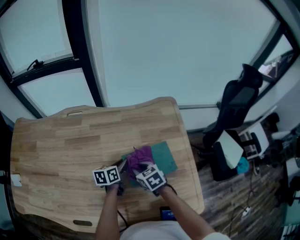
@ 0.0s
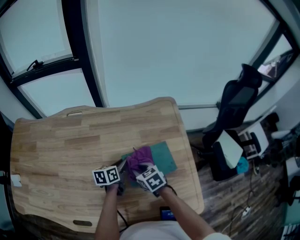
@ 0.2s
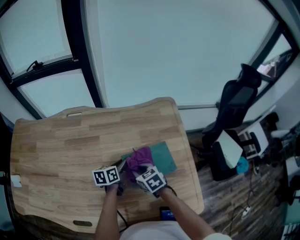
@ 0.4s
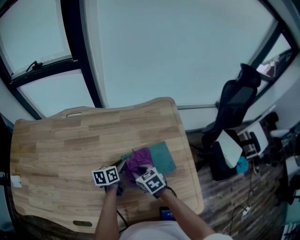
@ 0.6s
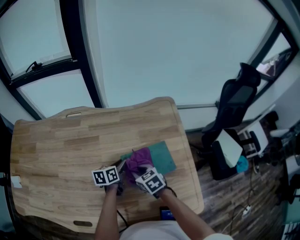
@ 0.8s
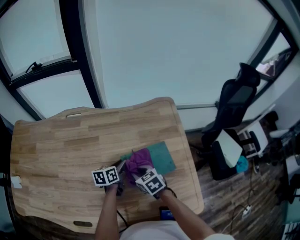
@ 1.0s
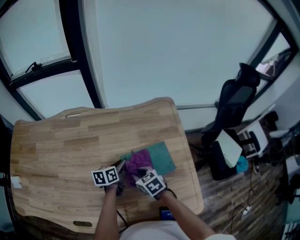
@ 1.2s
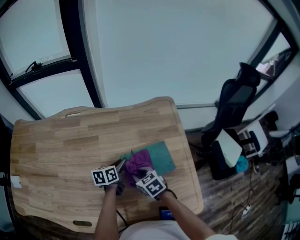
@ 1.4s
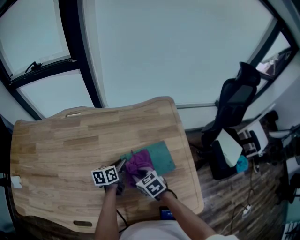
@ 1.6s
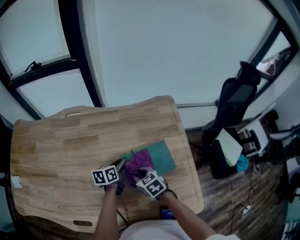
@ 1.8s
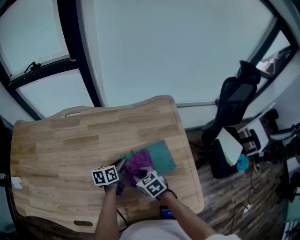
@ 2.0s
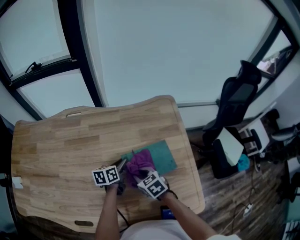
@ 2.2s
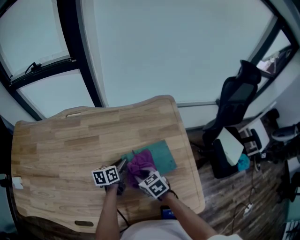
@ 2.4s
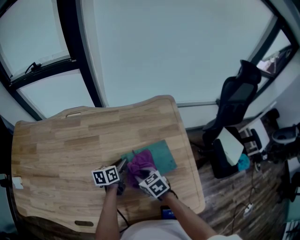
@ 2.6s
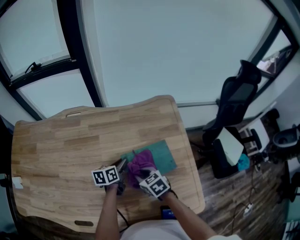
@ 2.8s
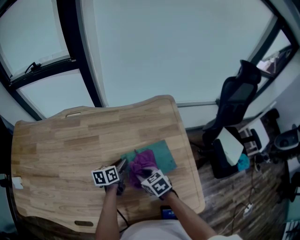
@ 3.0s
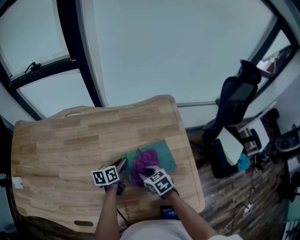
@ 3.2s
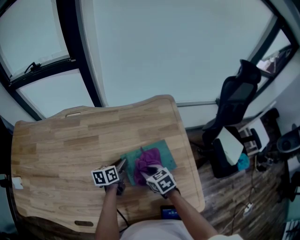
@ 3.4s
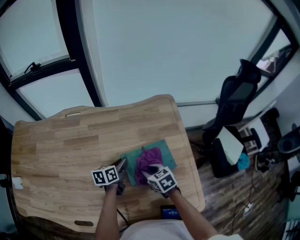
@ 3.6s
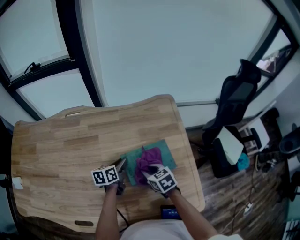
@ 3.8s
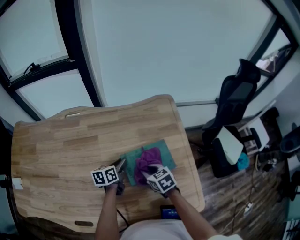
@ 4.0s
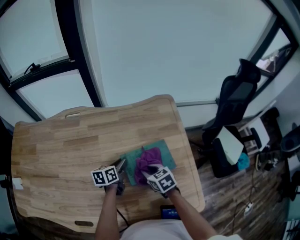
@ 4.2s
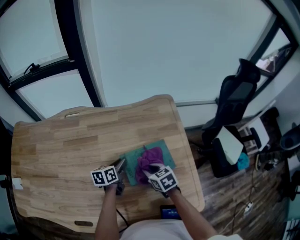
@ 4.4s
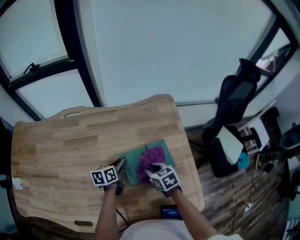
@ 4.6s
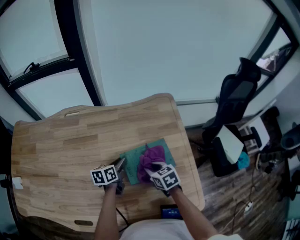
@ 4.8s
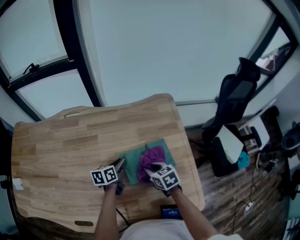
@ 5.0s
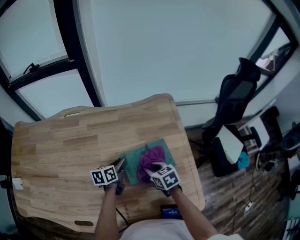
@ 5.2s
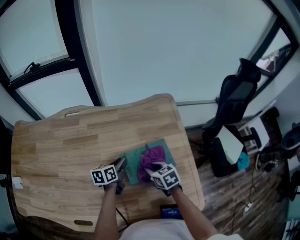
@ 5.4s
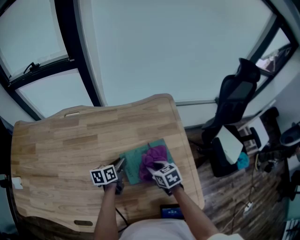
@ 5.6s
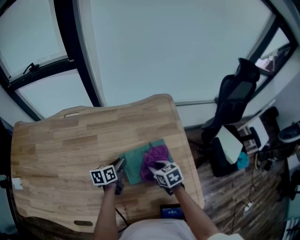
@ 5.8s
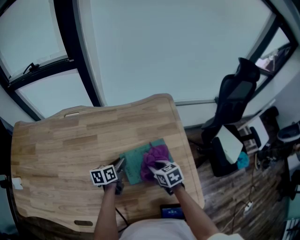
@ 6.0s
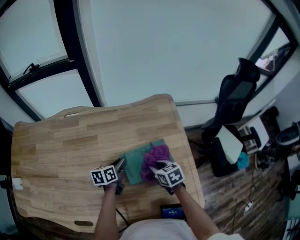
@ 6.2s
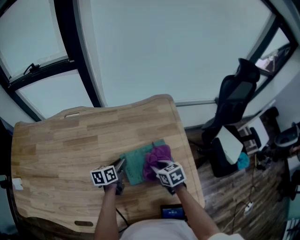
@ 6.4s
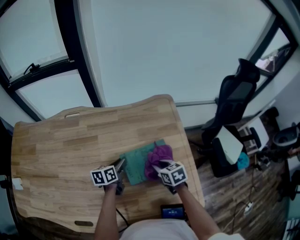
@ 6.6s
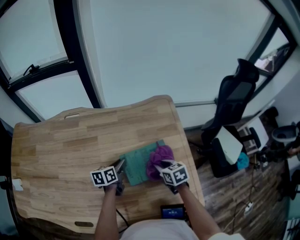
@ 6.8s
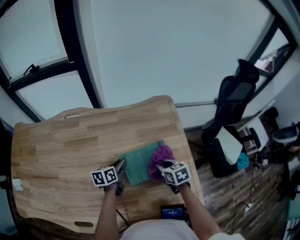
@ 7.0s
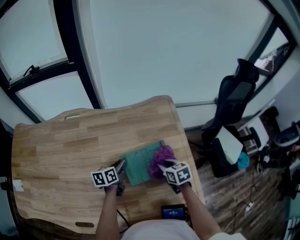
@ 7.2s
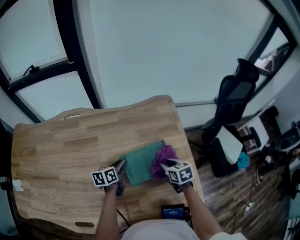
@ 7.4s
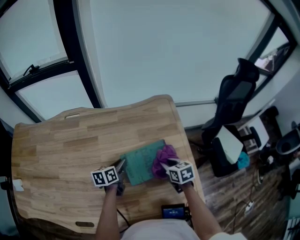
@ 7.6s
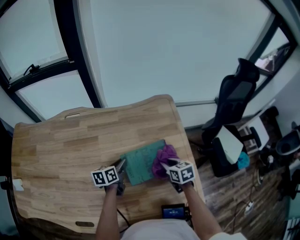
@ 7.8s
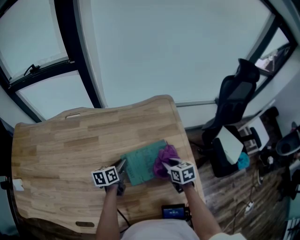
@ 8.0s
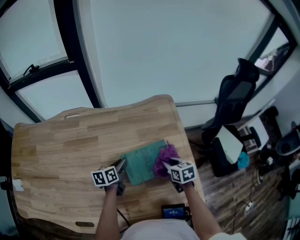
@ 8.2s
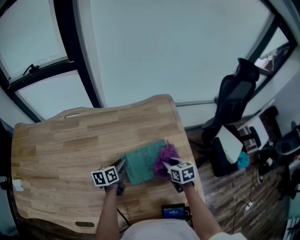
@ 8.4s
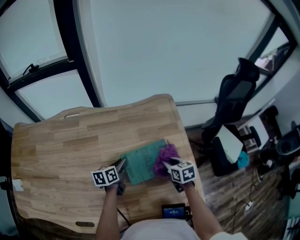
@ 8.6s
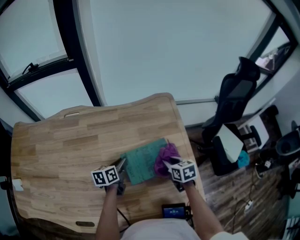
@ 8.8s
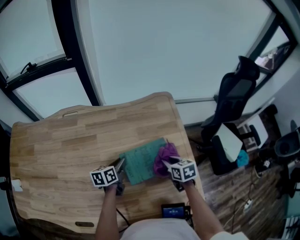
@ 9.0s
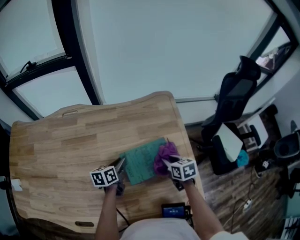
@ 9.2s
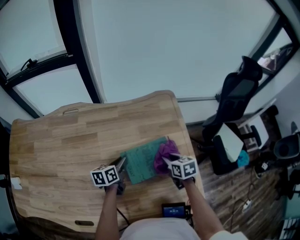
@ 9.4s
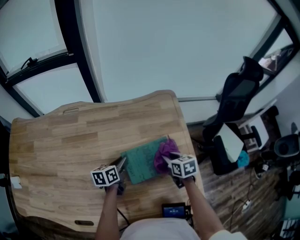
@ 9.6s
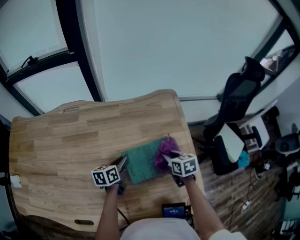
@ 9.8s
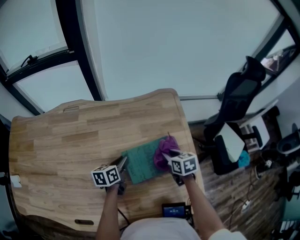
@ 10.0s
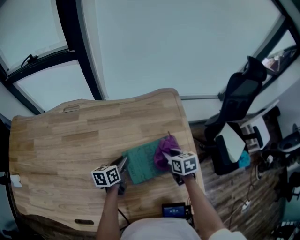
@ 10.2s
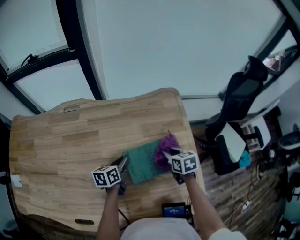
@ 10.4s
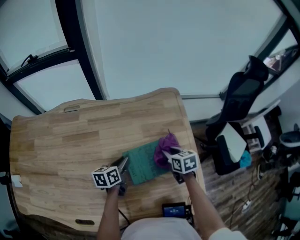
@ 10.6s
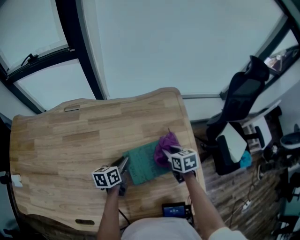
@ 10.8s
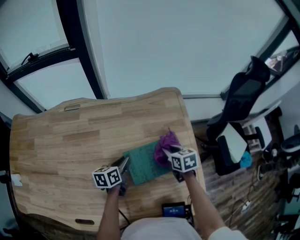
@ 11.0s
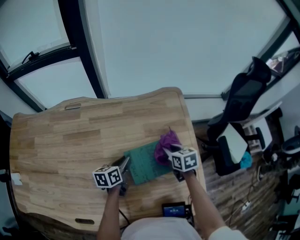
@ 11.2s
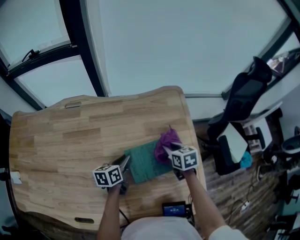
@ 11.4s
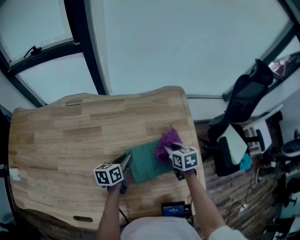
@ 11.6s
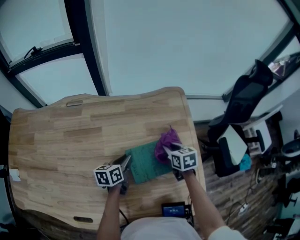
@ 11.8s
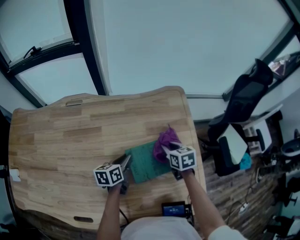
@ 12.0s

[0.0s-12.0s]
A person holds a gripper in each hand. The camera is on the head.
0.0s to 4.4s: The grippers stay close to where they were, moving slightly.
4.4s to 6.0s: The grippers stay close to where they were, moving slightly.
6.0s to 7.6s: The right gripper travels to the right by roughly 5 cm.
7.6s to 9.0s: Both grippers stay put.
9.0s to 10.4s: The grippers stay close to where they were, moving slightly.
10.4s to 12.0s: The grippers stay close to where they were, moving slightly.

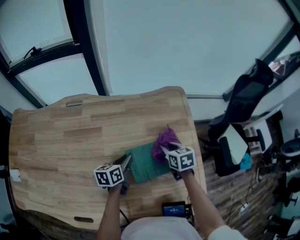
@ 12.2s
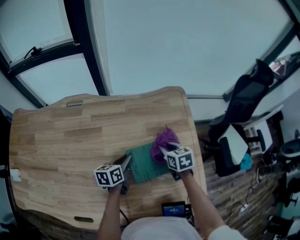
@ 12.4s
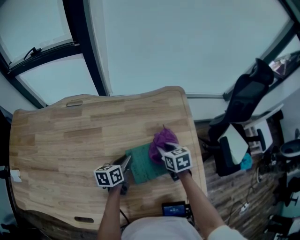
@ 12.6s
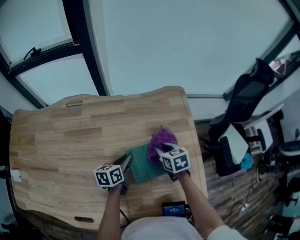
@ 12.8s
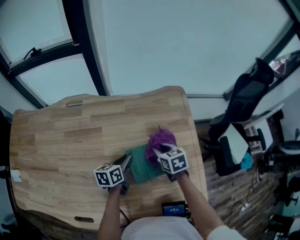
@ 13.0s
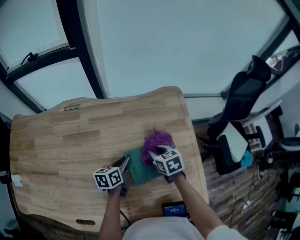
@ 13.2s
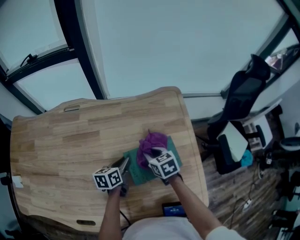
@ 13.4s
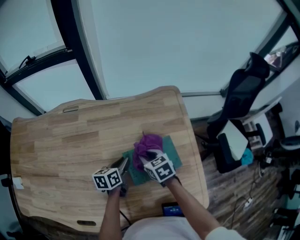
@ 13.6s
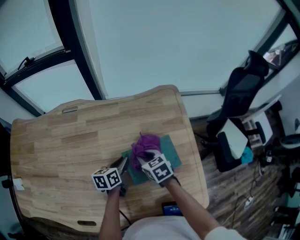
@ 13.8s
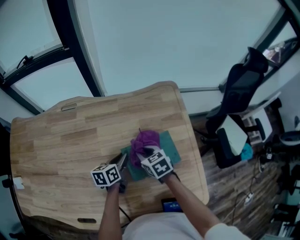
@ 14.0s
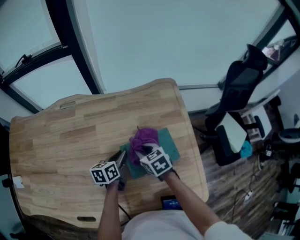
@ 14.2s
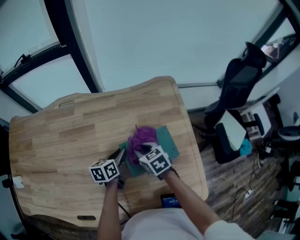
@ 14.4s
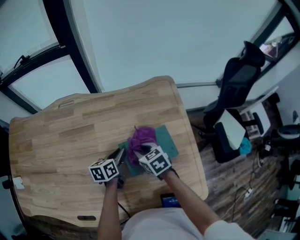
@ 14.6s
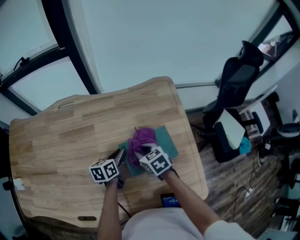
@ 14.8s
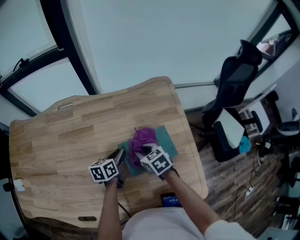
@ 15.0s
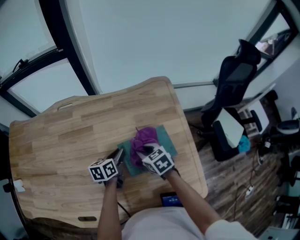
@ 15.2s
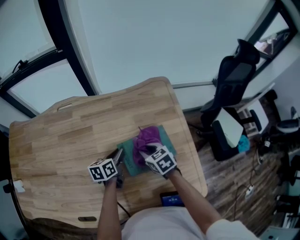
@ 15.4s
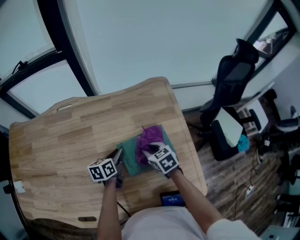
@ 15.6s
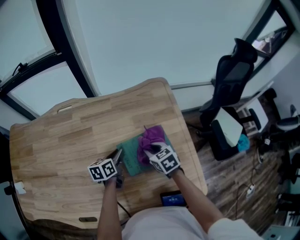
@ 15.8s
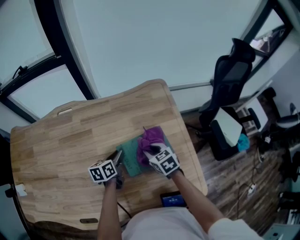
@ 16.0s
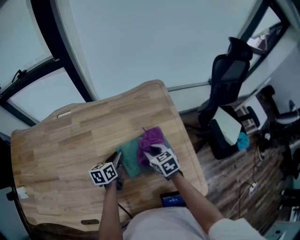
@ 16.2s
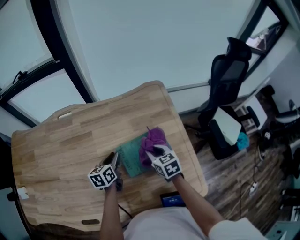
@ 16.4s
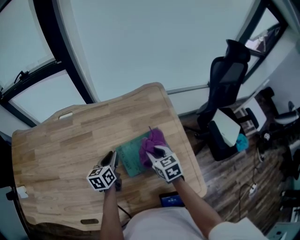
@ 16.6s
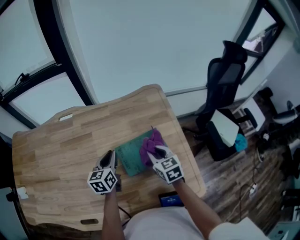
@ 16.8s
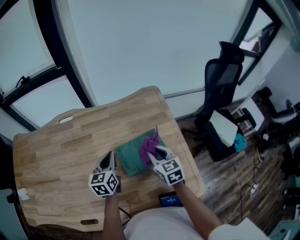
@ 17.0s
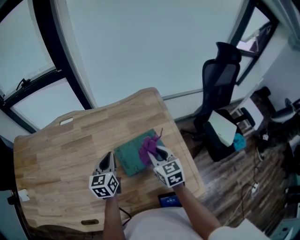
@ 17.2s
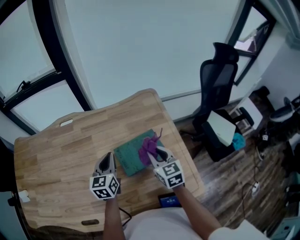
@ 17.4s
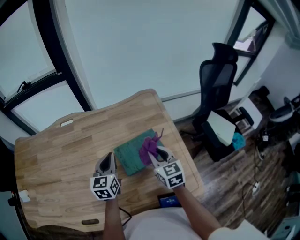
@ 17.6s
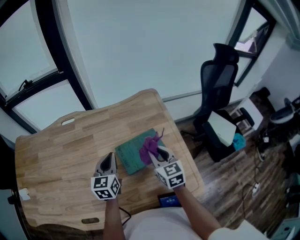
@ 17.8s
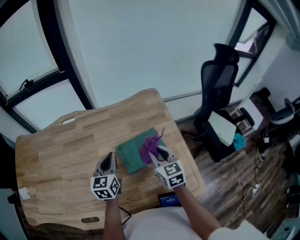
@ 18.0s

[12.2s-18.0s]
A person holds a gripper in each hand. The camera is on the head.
12.2s to 13.6s: The right gripper heads to the left, covering roughly 10 cm.
13.6s to 15.0s: The grippers stay close to where they were, moving slightly.
15.0s to 16.6s: The right gripper travels to the right by some 5 cm. The left gripper moves some 5 cm.
16.6s to 18.0s: Both grippers travel together upward, about 10 cm. The left gripper turns by some 20 degrees.

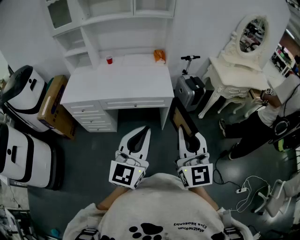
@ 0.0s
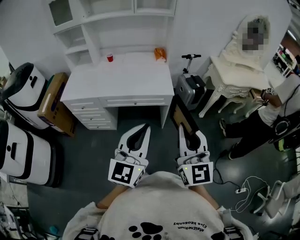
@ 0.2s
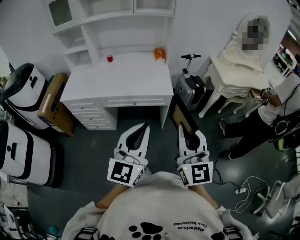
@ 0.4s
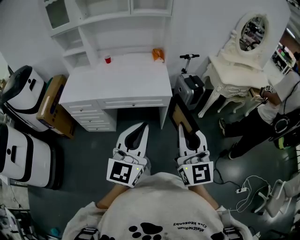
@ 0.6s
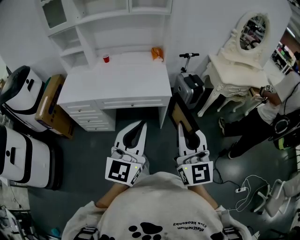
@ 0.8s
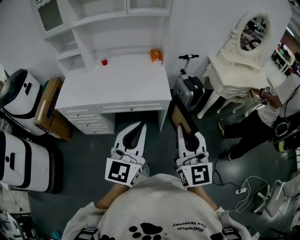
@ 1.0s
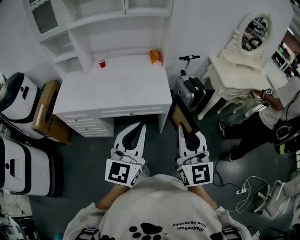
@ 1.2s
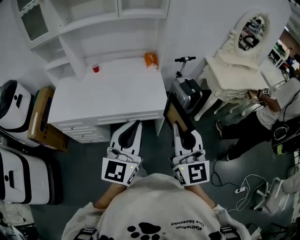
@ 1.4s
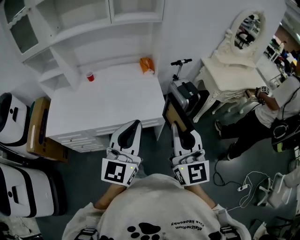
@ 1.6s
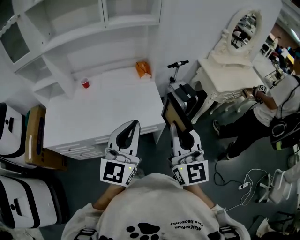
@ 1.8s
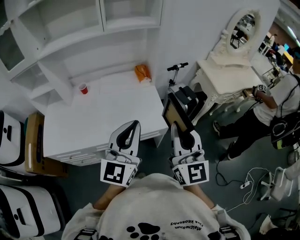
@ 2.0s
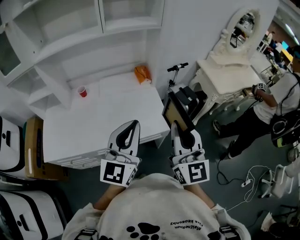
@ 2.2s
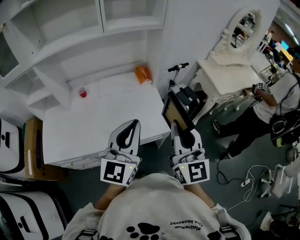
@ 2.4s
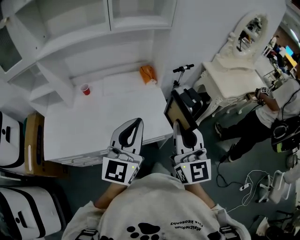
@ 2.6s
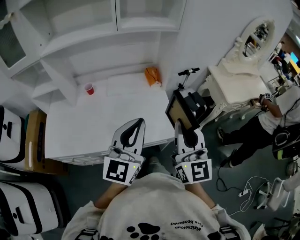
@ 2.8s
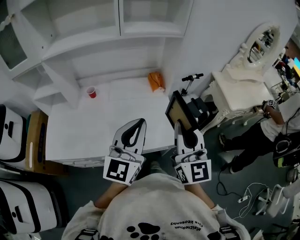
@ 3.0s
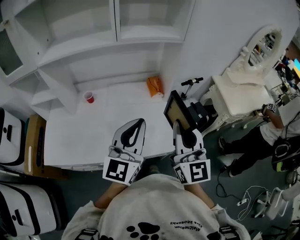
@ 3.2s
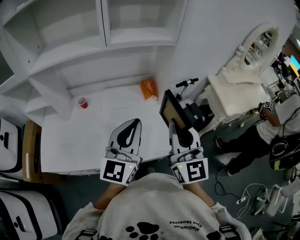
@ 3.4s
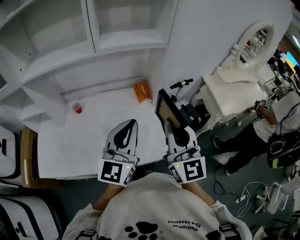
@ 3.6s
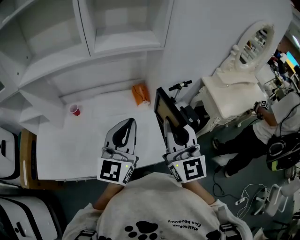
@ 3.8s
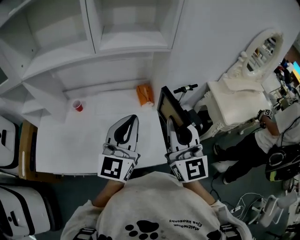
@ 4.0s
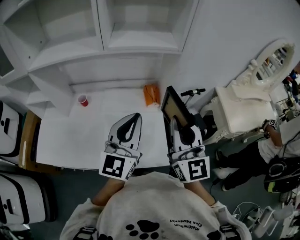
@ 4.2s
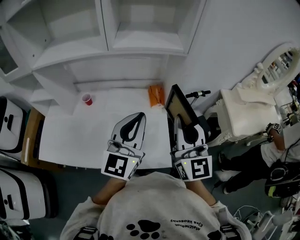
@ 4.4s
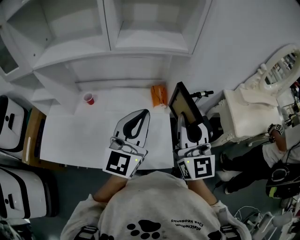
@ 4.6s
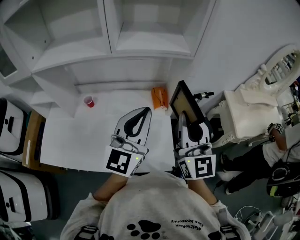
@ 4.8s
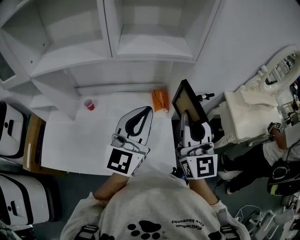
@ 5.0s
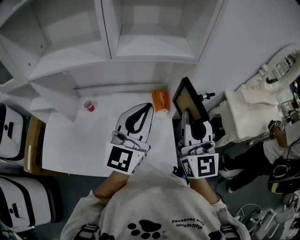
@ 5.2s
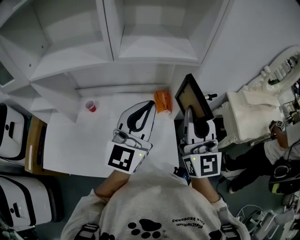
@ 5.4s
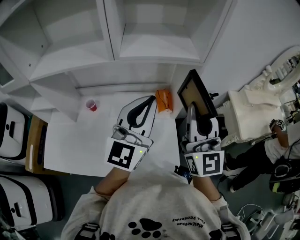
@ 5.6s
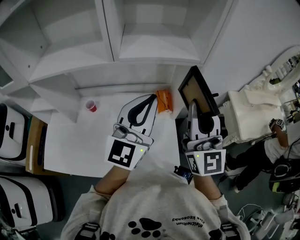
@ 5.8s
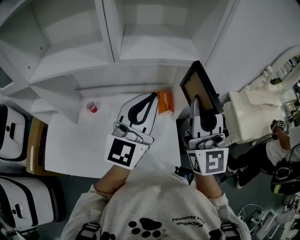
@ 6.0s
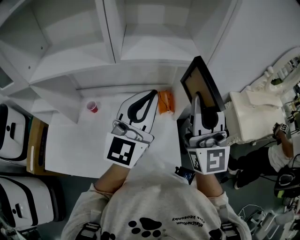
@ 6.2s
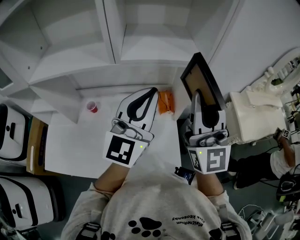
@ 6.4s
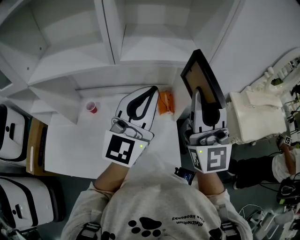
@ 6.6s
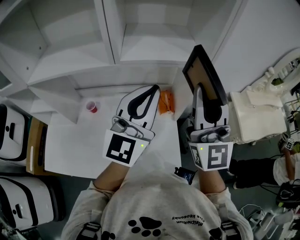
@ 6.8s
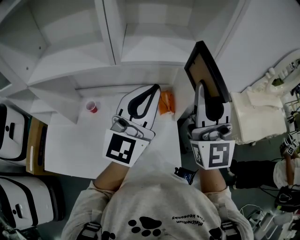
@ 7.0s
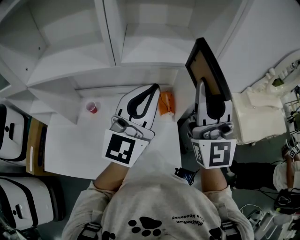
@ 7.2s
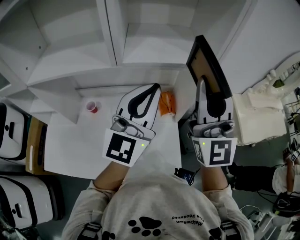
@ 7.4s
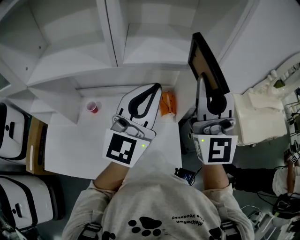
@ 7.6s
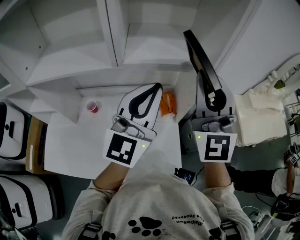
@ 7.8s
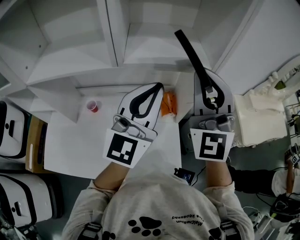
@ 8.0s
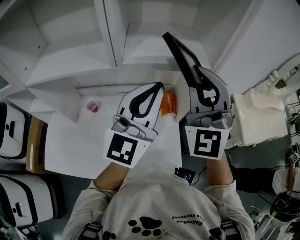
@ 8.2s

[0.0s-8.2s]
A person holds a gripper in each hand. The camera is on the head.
0.0s to 1.6s: The two grippers go about 25 cm forward.
1.6s to 3.2s: The right gripper travels forward and to the left by approximately 25 cm. Meanwhile the left gripper goes about 25 cm forward.
3.2s to 5.0s: The two grippers go about 15 cm forward.
5.0s to 6.6s: The left gripper goes about 10 cm forward and upward; the right gripper is displaced upward and forward by about 10 cm.
6.6s to 8.2s: The right gripper heads forward, covering some 5 cm, and rotates roughly 40 degrees.
